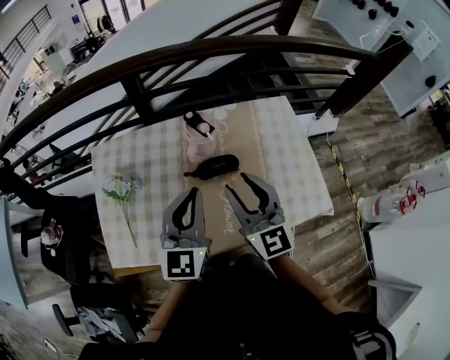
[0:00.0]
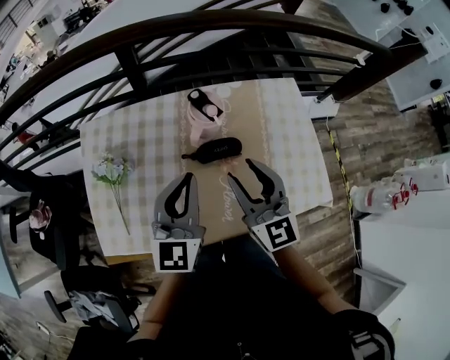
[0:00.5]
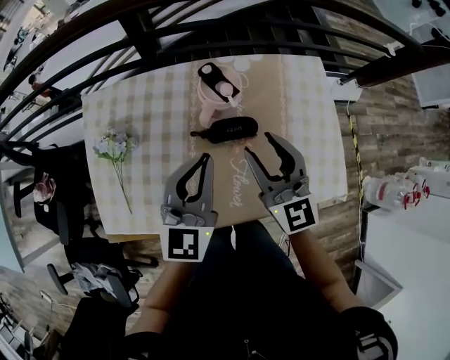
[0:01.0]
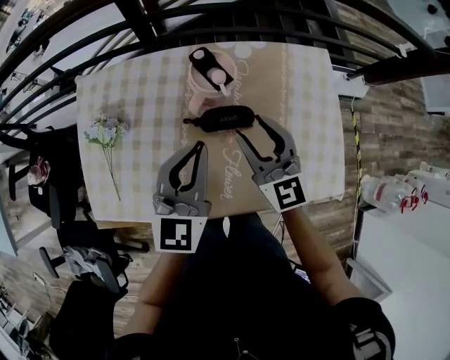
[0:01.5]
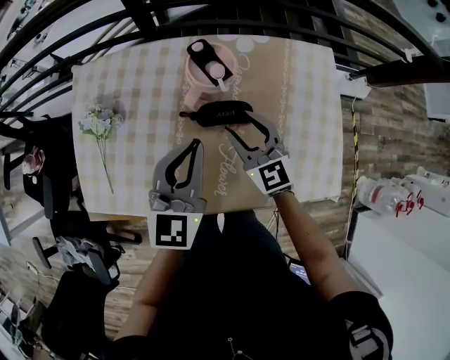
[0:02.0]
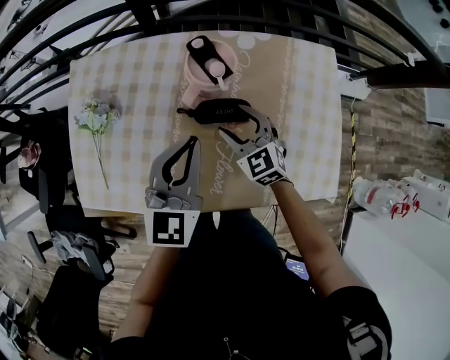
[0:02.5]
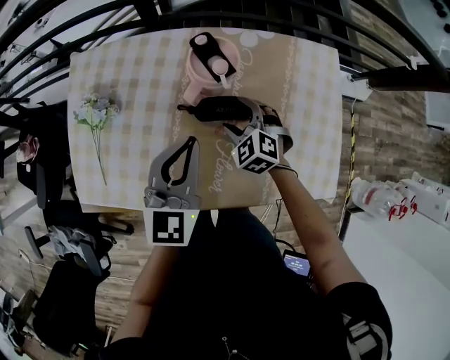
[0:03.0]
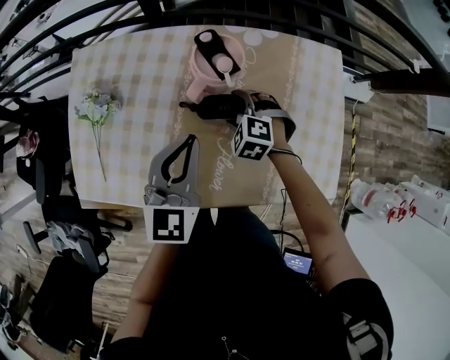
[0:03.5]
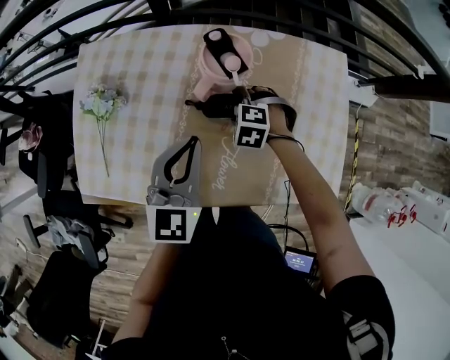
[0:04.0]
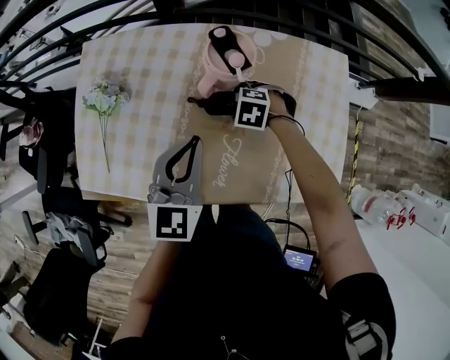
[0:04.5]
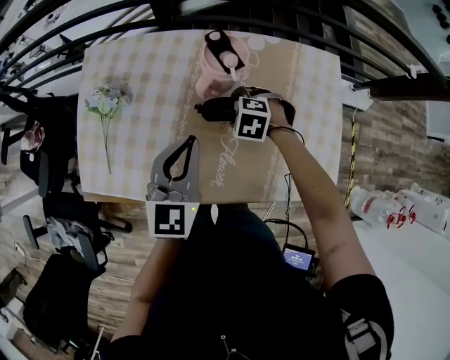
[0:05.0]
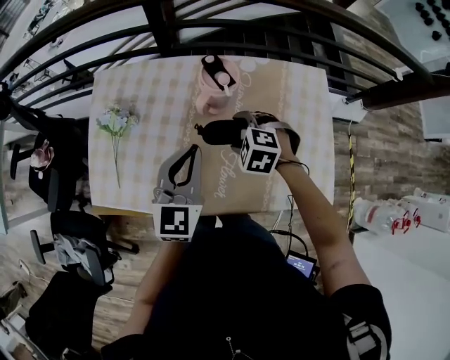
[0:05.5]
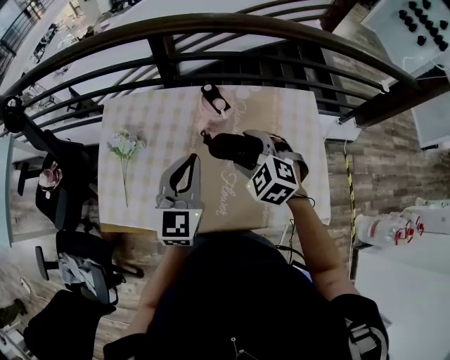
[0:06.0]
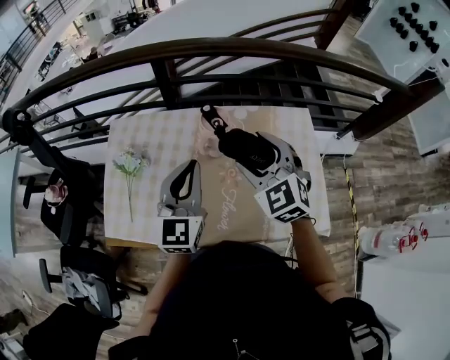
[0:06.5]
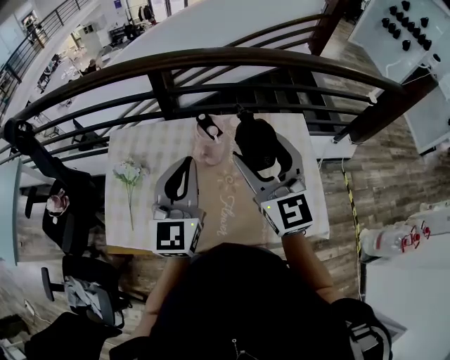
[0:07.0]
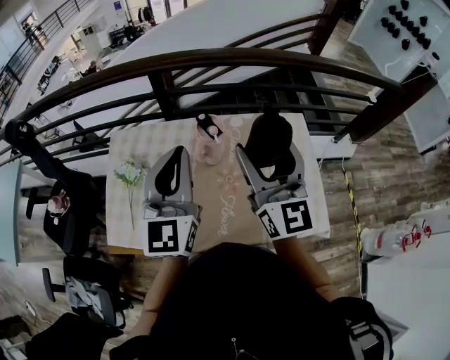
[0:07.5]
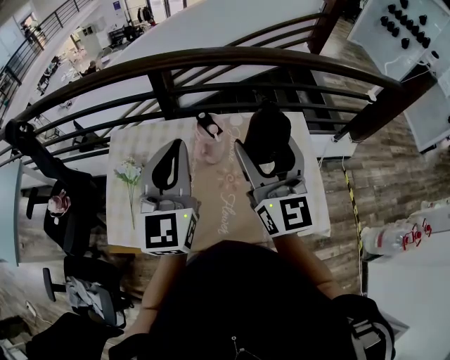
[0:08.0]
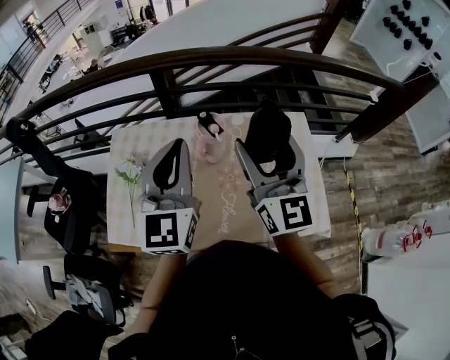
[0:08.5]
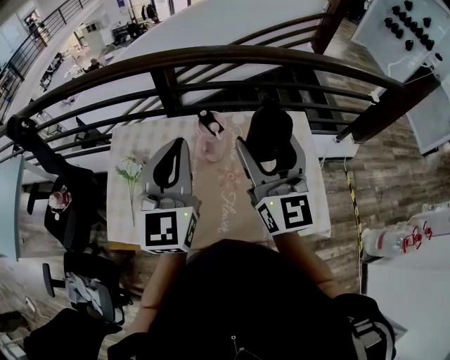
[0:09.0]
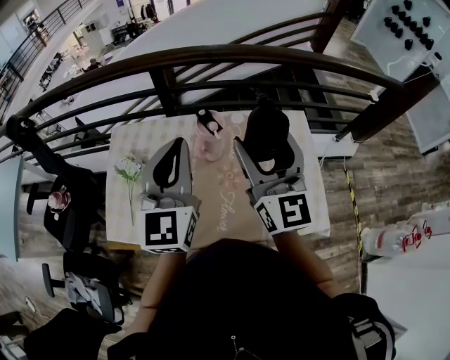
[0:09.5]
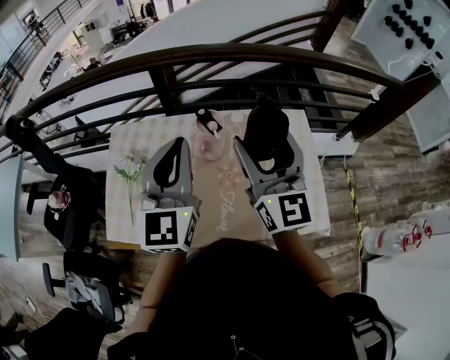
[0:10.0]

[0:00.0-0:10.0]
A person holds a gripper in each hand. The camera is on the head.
0:00.0 to 0:02.0: The left gripper travels downward by approximately 10 cm. The right gripper shifts some 20 cm downward and forward, and swivels roughly 20 degrees.
0:02.0 to 0:04.0: The right gripper is displaced downward by approximately 15 cm, tips its fingers downward by about 50 degrees, and opens its fingers.
0:04.0 to 0:06.0: The right gripper is displaced upward by roughly 20 cm, and rotates about 30 degrees, while the left gripper travels upward by roughly 10 cm.
0:06.0 to 0:08.0: Both grippers move upward, some 20 cm. The right gripper tips its fingers upward by some 60 degrees.
0:08.0 to 0:10.0: Both grippers stay about where they are.

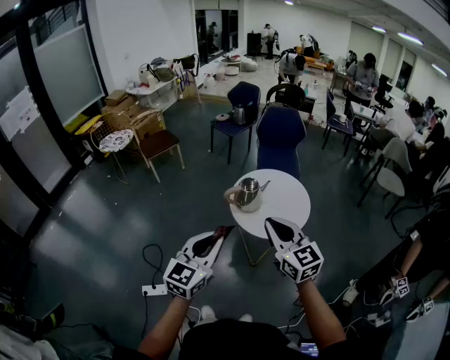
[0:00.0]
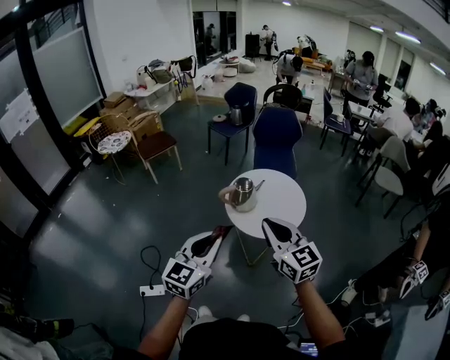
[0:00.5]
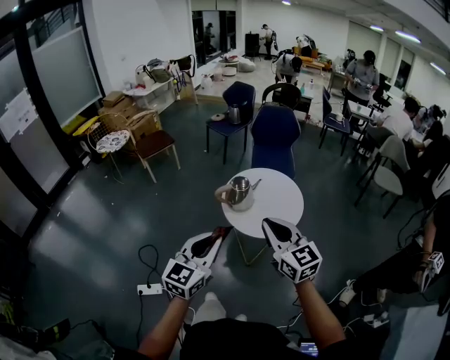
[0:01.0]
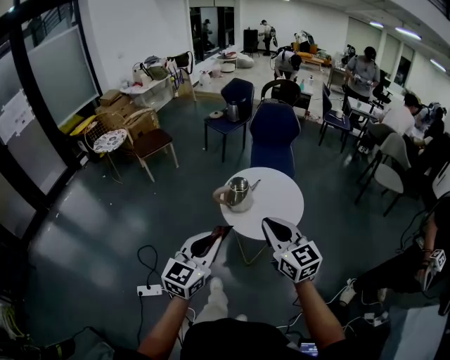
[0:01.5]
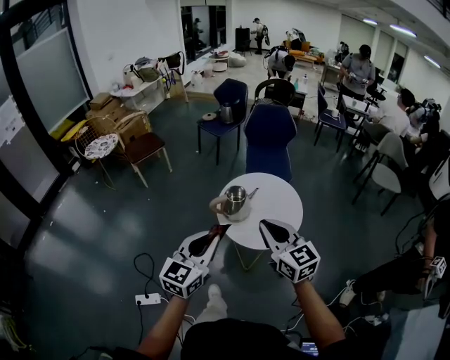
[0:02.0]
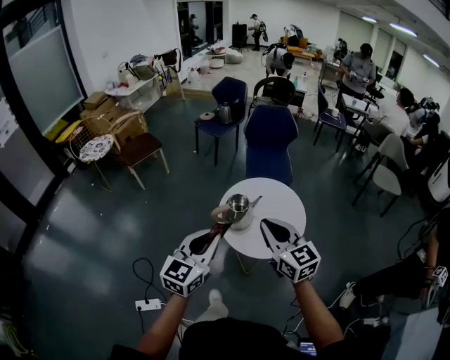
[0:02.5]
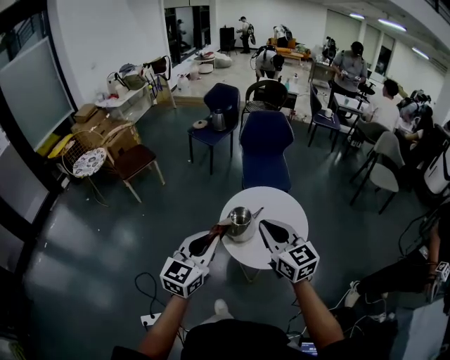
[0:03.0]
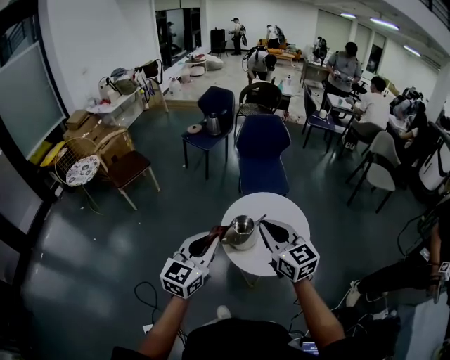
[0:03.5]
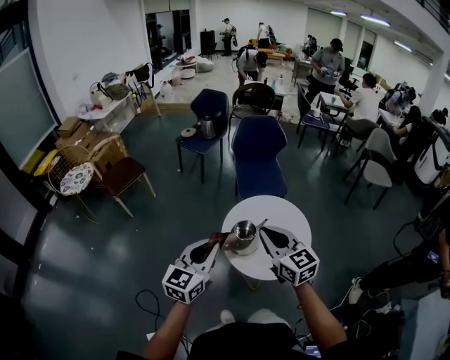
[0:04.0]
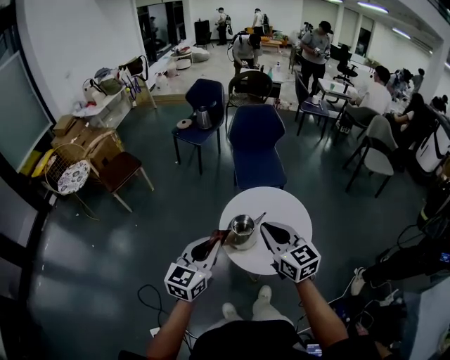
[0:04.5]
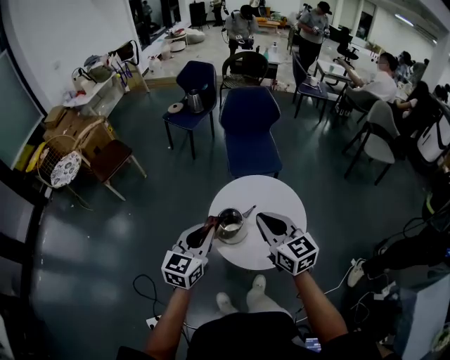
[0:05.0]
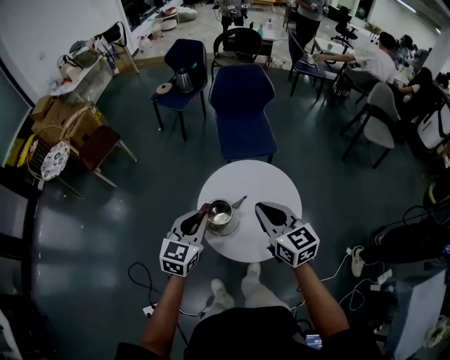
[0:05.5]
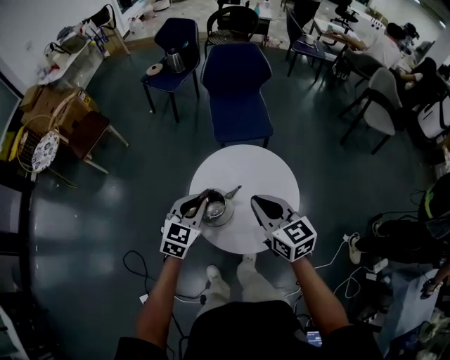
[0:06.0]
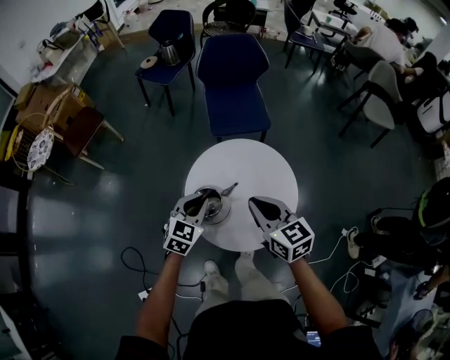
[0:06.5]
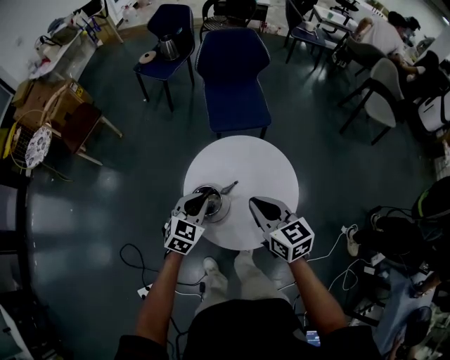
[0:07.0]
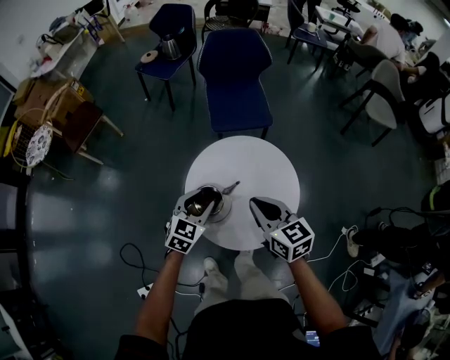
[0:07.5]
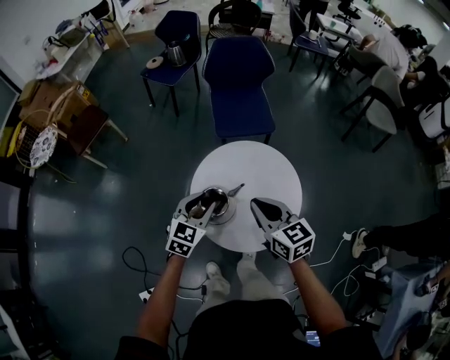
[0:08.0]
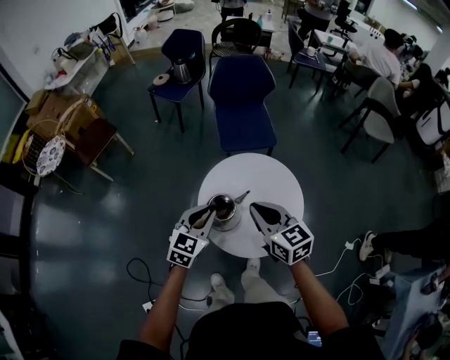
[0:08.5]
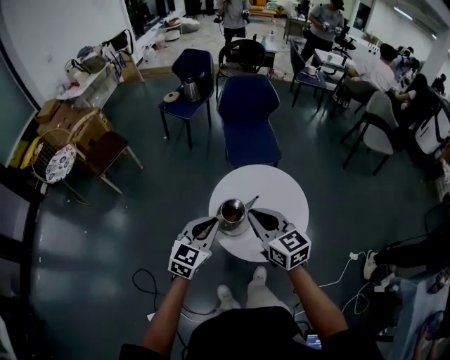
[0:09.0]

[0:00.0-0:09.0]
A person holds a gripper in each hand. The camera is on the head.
0:00.0 to 0:02.0: Both grippers travel together forward, roughly 10 cm.
0:02.0 to 0:04.5: Both grippers travel together forward, roughly 25 cm.
0:04.5 to 0:07.0: The grippers both shift downward, forward and to the right by roughly 30 cm. The left gripper turns by approximately 30 degrees.
0:07.0 to 0:09.0: The left gripper moves upward, backward and to the left, about 20 cm, and opens and closes again; the right gripper travels upward, to the left and backward by some 20 cm.

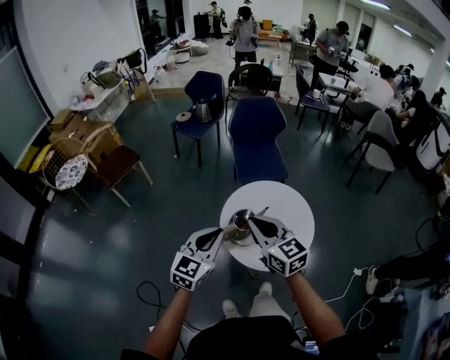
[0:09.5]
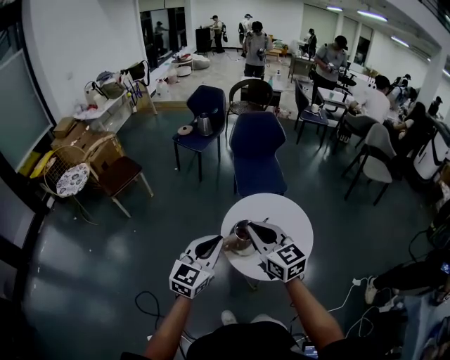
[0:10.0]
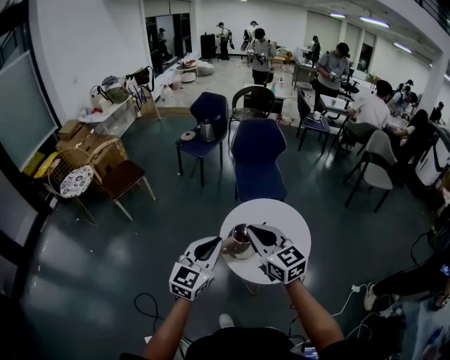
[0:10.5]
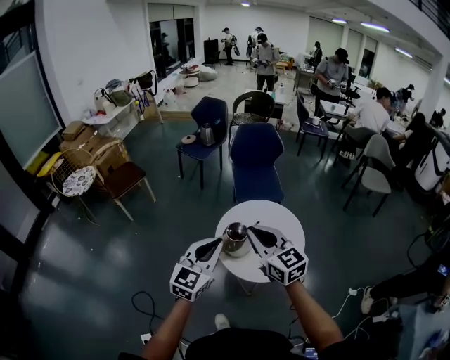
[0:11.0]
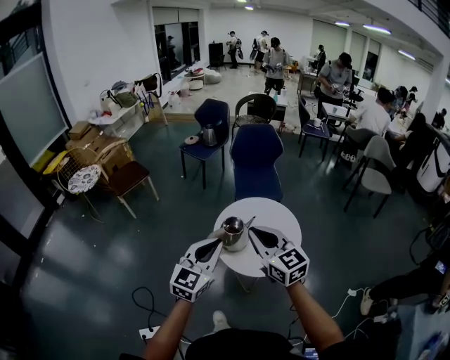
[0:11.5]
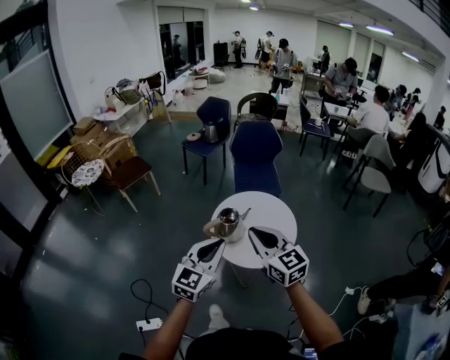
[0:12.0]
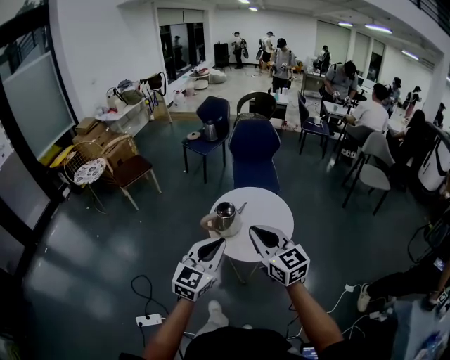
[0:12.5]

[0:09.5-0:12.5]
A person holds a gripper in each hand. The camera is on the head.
0:09.5 to 0:11.0: The grippers both shift backward and upward by roughly 10 cm.
0:11.0 to 0:12.5: Both grippers travel together backward and to the right, some 20 cm.

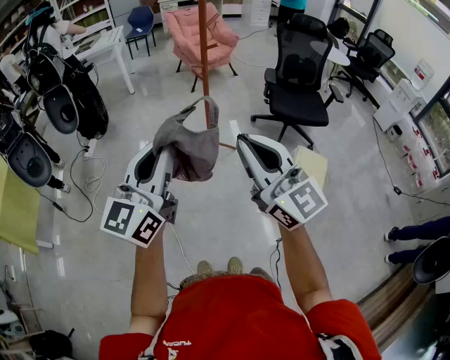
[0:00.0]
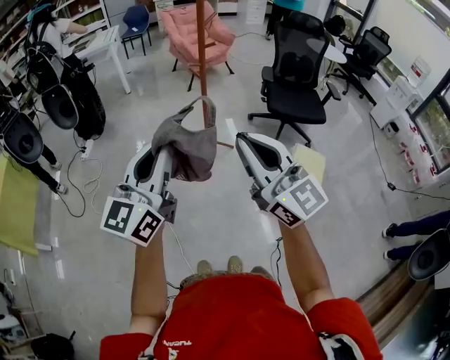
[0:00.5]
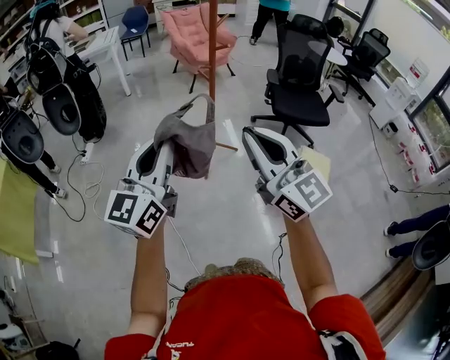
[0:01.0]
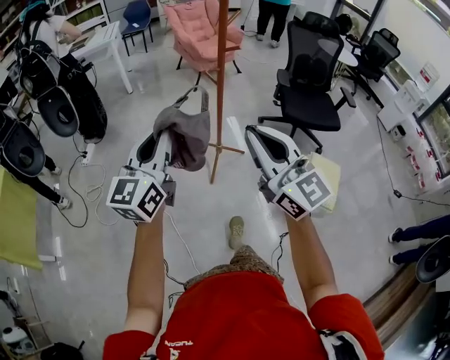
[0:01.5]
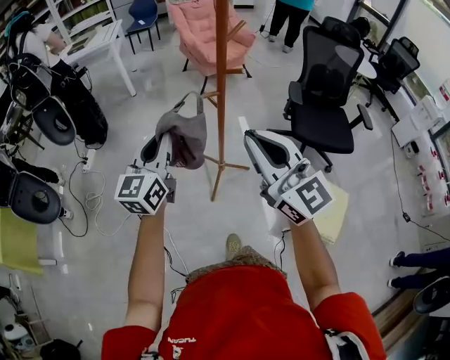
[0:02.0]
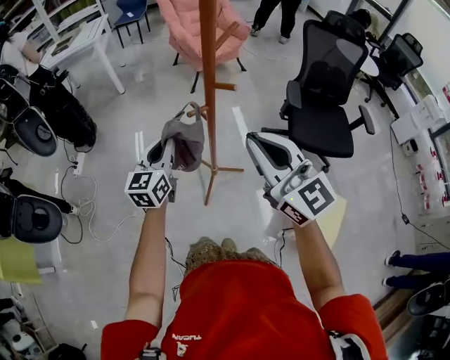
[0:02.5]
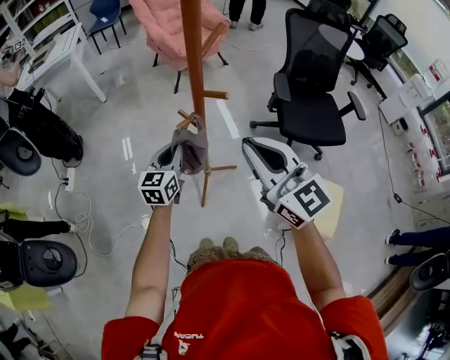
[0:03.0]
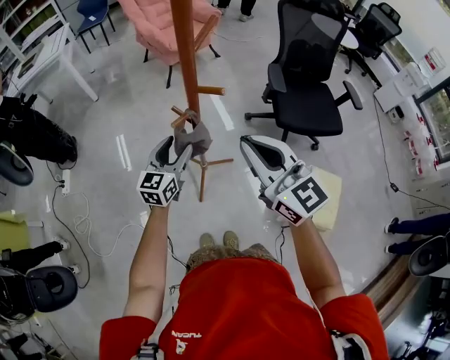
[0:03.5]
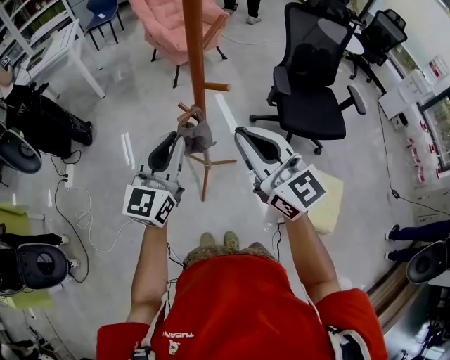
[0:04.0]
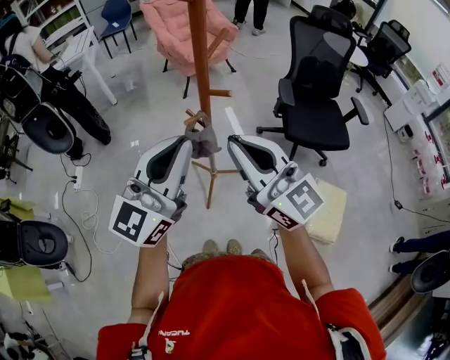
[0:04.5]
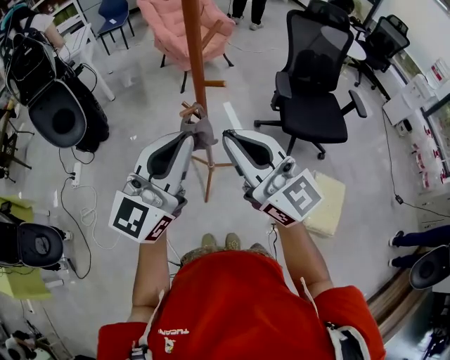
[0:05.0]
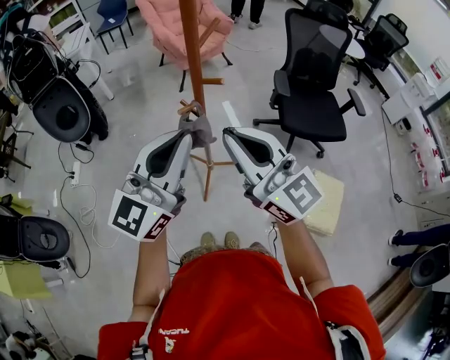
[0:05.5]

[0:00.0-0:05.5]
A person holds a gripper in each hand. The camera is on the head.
0:00.0 to 0:02.0: Both grippers move forward, roughly 35 cm.
0:02.0 to 0:03.5: The left gripper heads downward, forward and to the right, covering approximately 30 cm, swivels approximately 20 degrees, and opens up. Meanwhile the right gripper is displaced forward and downward by approximately 20 cm.
0:03.5 to 0:05.5: The left gripper is displaced upward and backward by some 30 cm, swivels about 30 degrees, and closes its fingers, while the right gripper shifts approximately 10 cm upward and backward.
